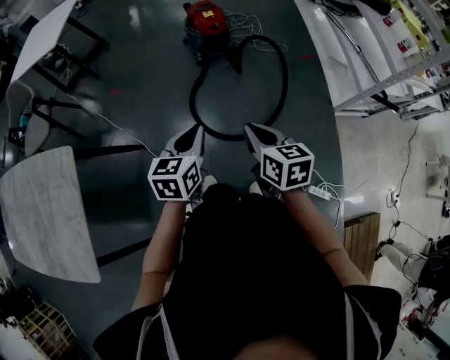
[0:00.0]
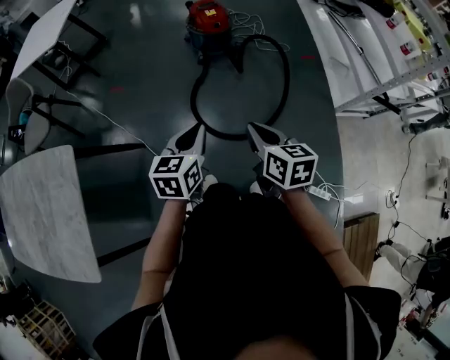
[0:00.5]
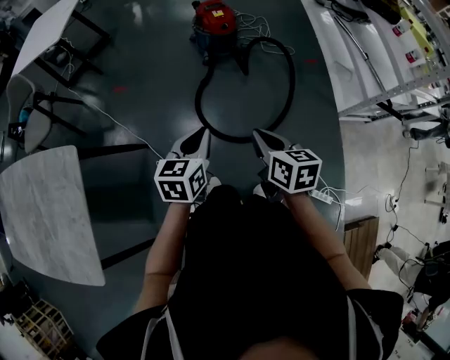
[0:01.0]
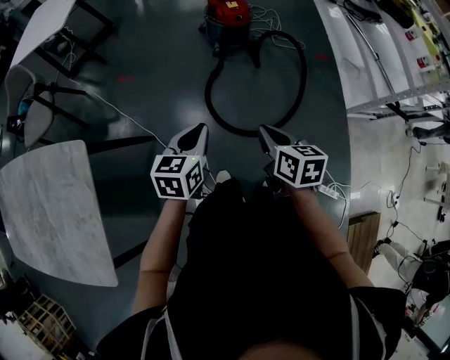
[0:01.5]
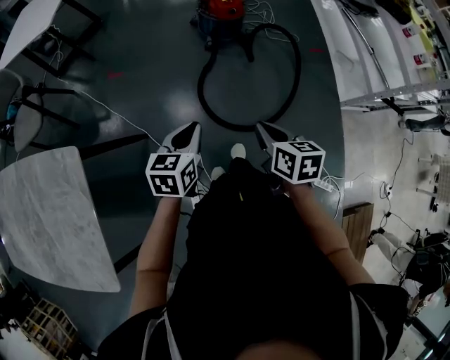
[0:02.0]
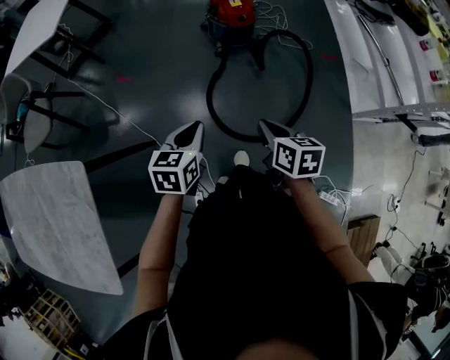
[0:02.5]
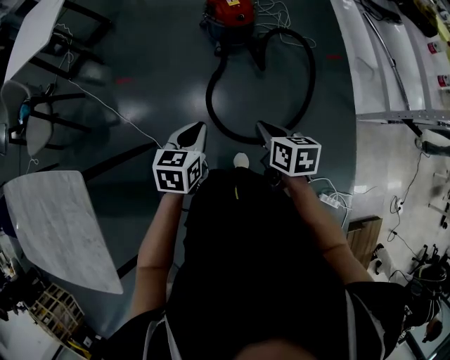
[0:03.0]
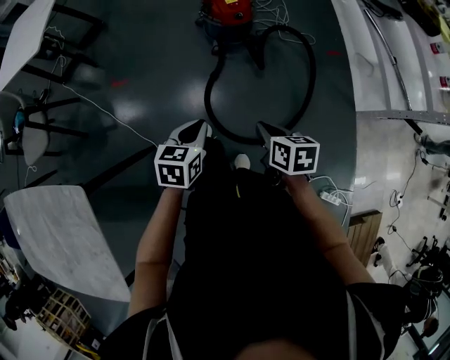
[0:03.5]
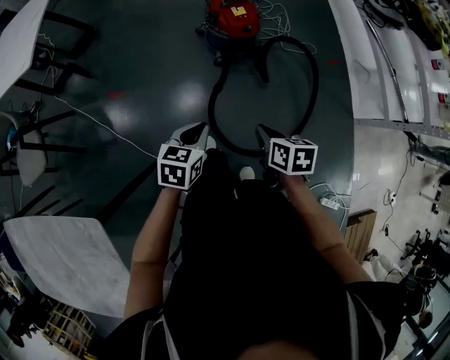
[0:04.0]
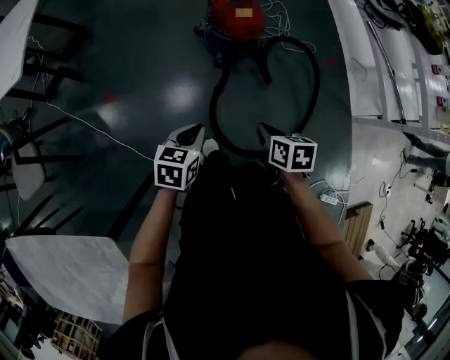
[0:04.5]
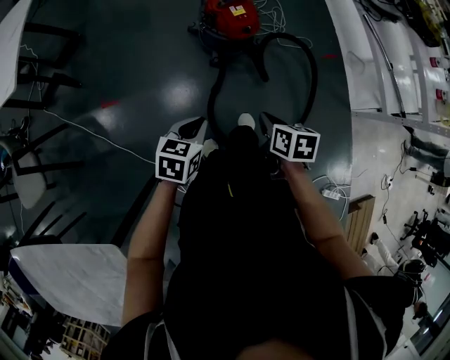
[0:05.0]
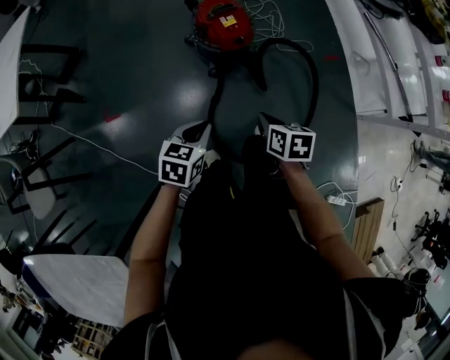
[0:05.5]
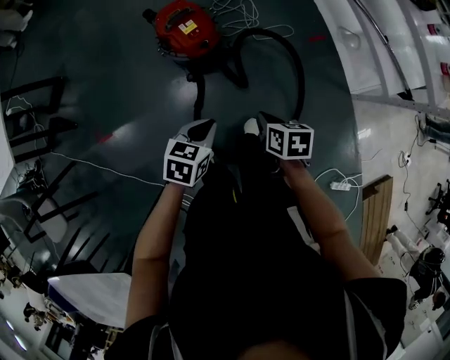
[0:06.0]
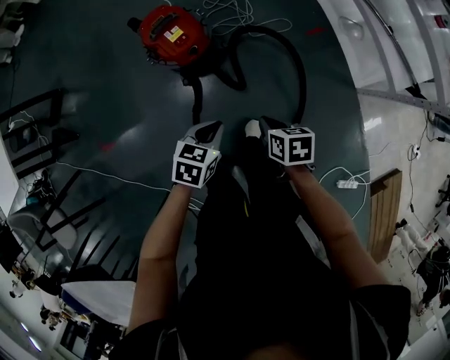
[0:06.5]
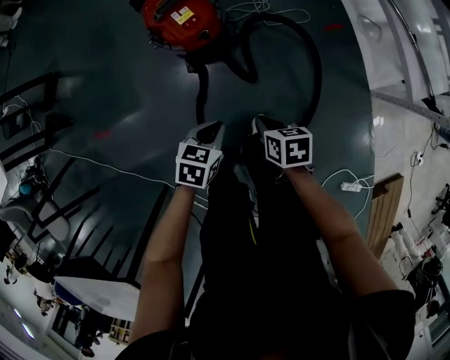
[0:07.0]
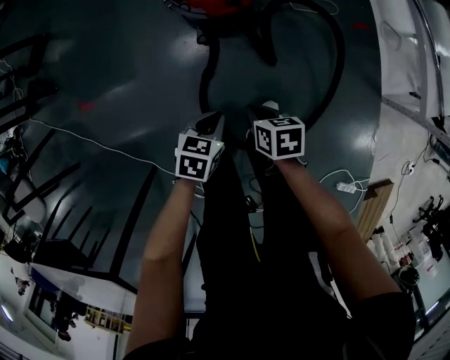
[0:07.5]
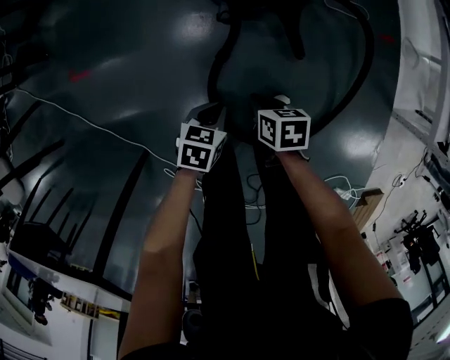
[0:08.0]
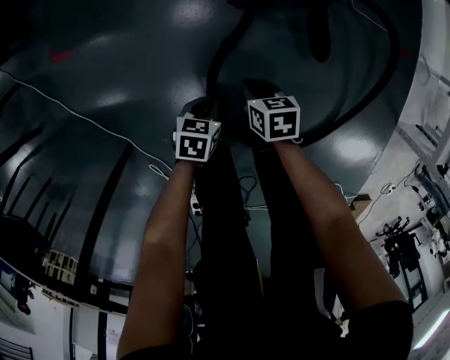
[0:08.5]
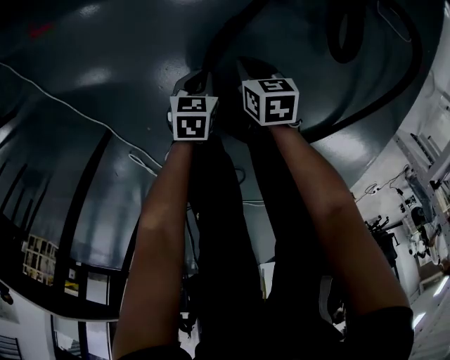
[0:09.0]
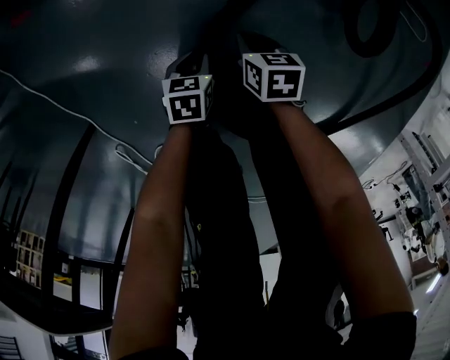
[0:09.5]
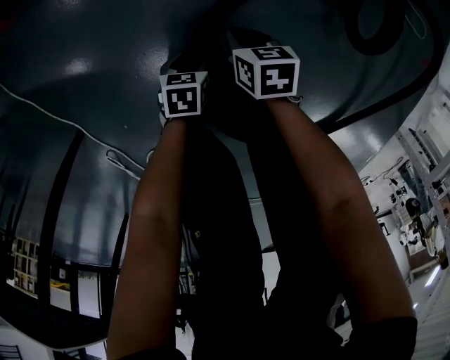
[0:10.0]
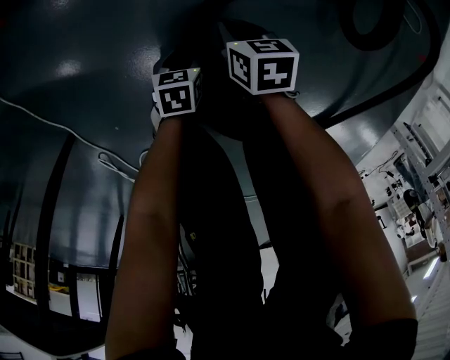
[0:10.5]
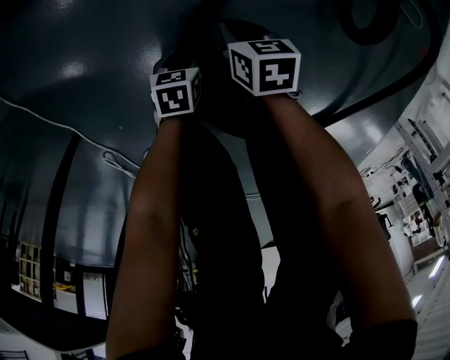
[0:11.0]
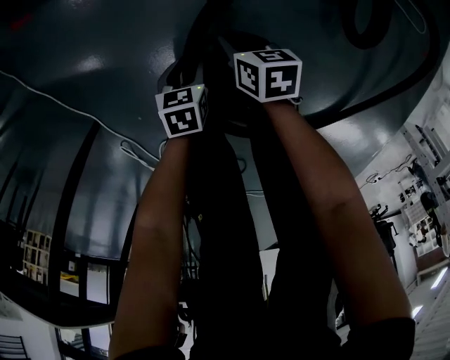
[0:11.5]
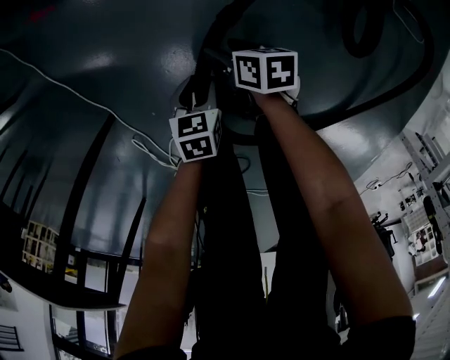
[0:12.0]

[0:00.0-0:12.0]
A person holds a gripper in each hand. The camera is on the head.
0:00.0 to 0:02.0: The grippers both shift to the left and forward by roughly 15 cm.
0:02.0 to 0:04.0: Both grippers move forward, about 30 cm.
0:04.0 to 0:06.0: The two grippers go some 25 cm forward and to the right. The left gripper swivels about 20 degrees.
0:06.0 to 0:08.0: The left gripper moves downward, about 35 cm, and rotates about 20 degrees, while the right gripper is displaced downward and to the left by about 35 cm, and swivels roughly 20 degrees.
0:08.0 to 0:10.0: Both grippers move downward, some 35 cm. The left gripper rotates some 30 degrees, and opens up, while the right gripper turns by roughly 20 degrees.
0:10.0 to 0:12.0: The left gripper moves upward, some 20 cm. Meanwhile the right gripper is displaced upward and to the left by roughly 10 cm, turns by approximately 20 degrees, and opens.

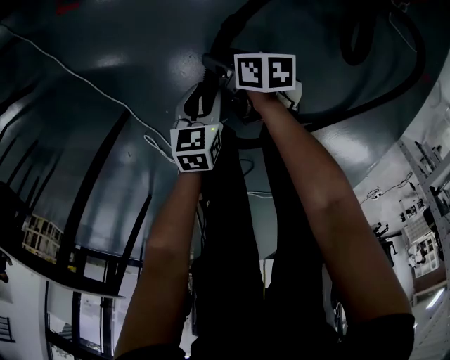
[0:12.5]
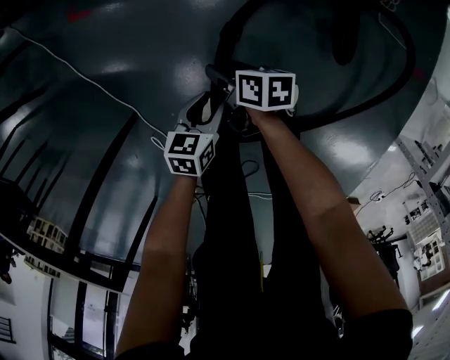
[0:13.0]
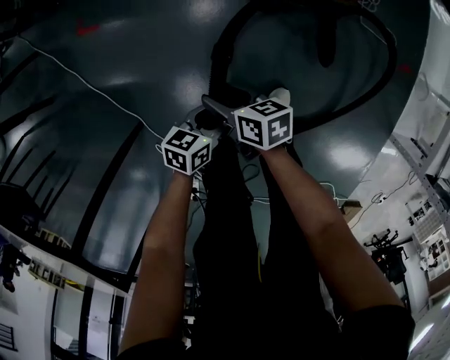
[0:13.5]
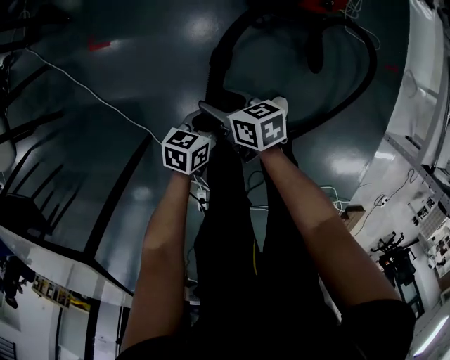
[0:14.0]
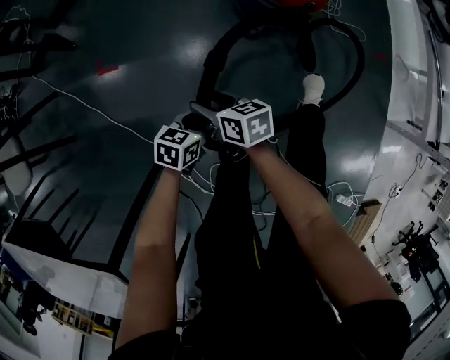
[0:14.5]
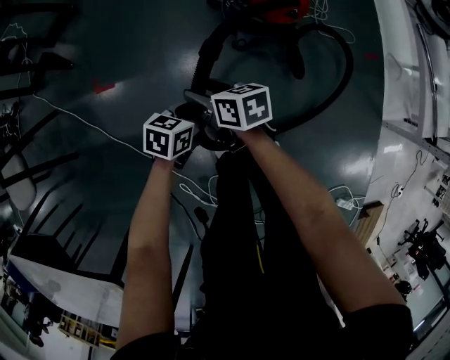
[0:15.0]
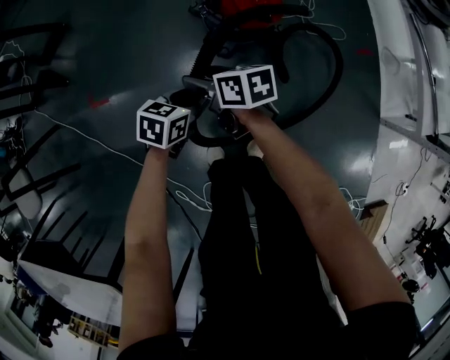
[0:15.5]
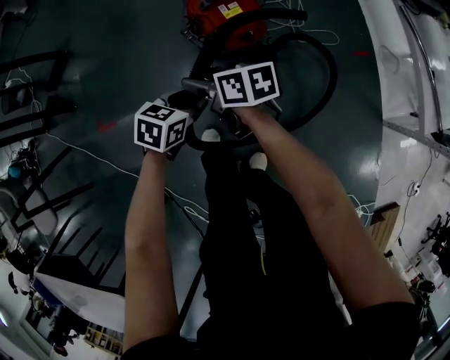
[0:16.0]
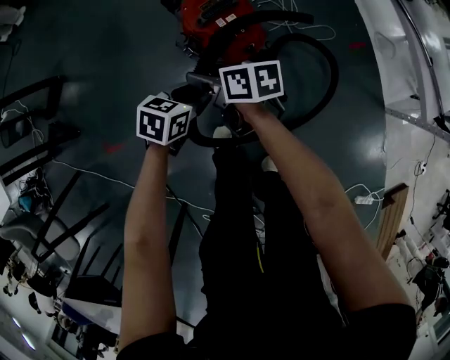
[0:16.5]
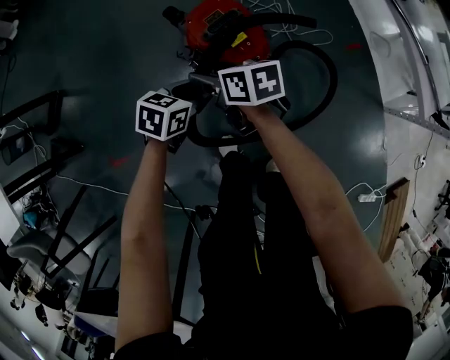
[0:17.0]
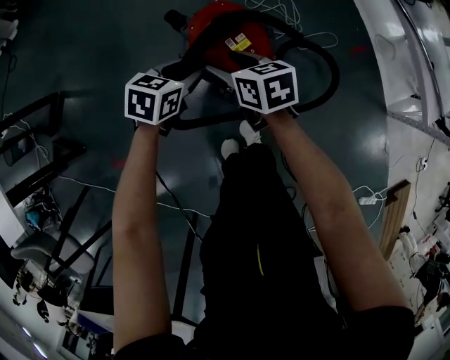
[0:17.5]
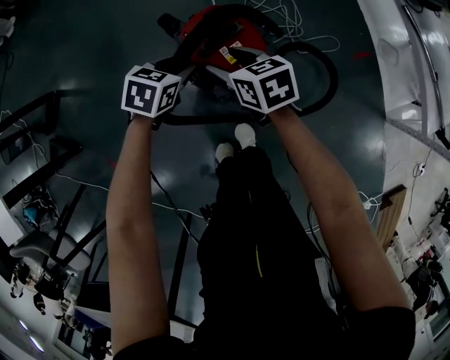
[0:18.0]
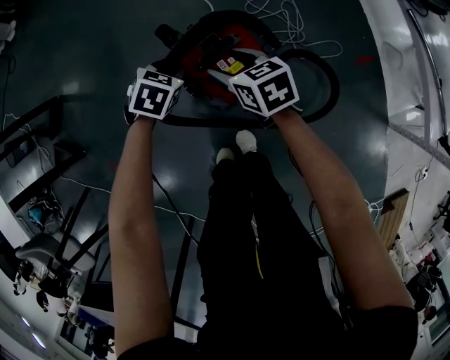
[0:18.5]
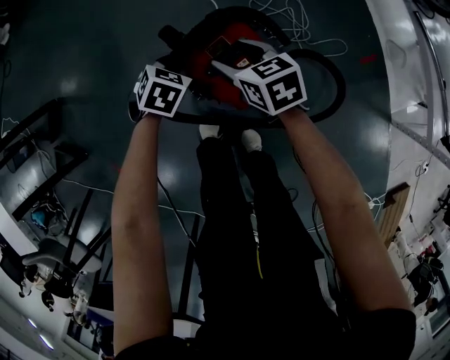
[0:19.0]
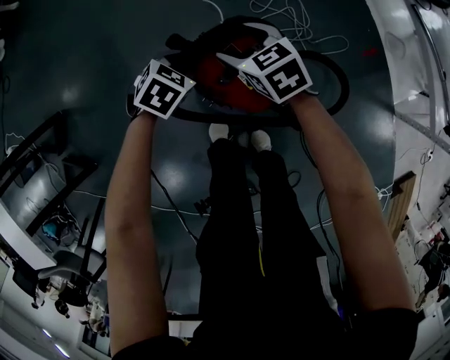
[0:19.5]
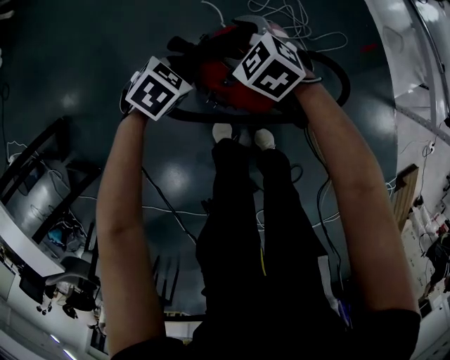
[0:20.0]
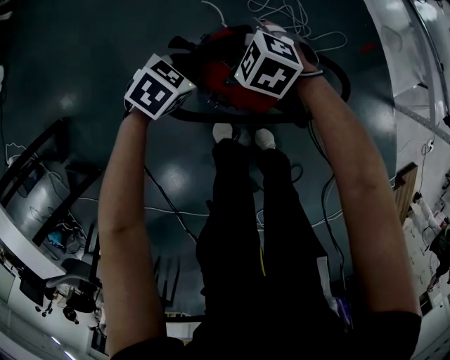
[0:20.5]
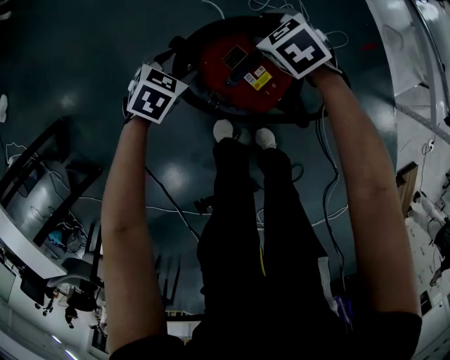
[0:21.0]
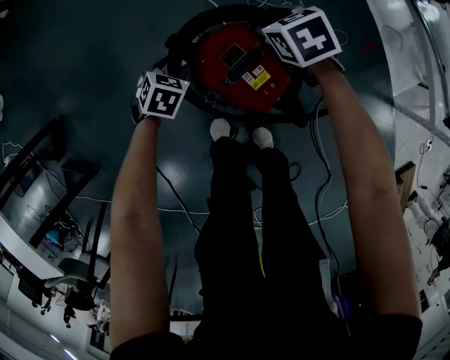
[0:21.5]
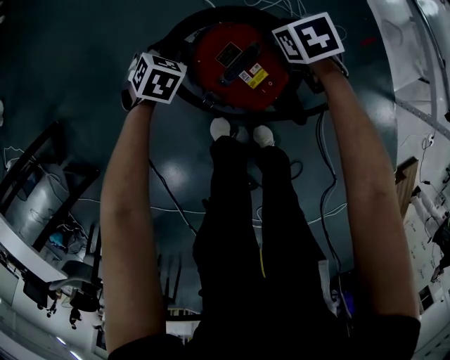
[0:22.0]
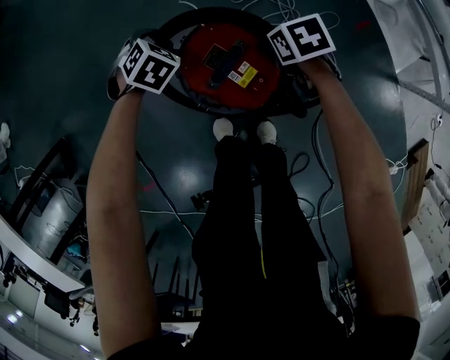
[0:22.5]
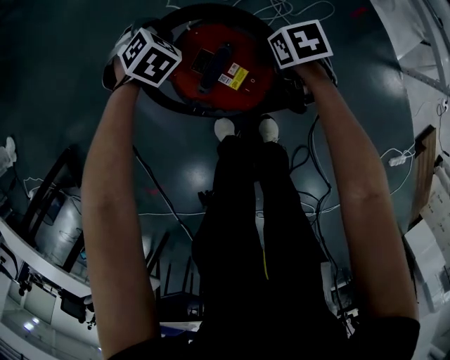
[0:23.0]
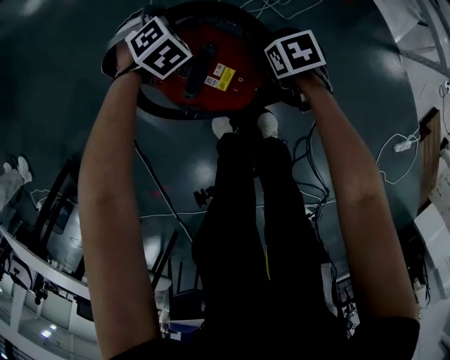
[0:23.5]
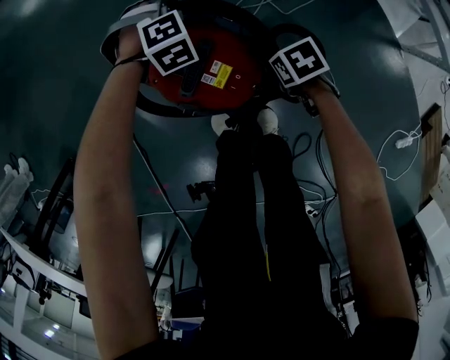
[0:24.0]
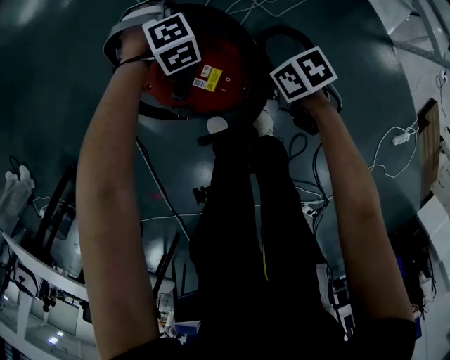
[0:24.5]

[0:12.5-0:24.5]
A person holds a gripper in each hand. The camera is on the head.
0:12.5 to 0:14.5: The two grippers go about 25 cm upward. The left gripper swivels some 40 degrees, while the right gripper turns by some 20 degrees.
0:14.5 to 0:16.5: Both grippers move forward and to the right, roughly 35 cm. The left gripper swivels about 20 degrees.
0:16.5 to 0:18.5: The grippers both shift forward by some 20 cm. The left gripper changes its angle by about 30 degrees. Meanwhile the right gripper changes its angle by some 30 degrees.
0:18.5 to 0:20.5: The left gripper rotates roughly 30 degrees. Meanwhile the right gripper moves some 10 cm, and twists some 40 degrees counterclockwise, seen from behind.
0:20.5 to 0:22.5: The right gripper changes place by approximately 15 cm, and twists roughly 60 degrees clockwise, seen from behind. Meanwhile the left gripper changes place by roughly 10 cm, turns by about 30 degrees, and opens, then closes once more.
0:22.5 to 0:24.5: The right gripper moves some 15 cm, and changes its angle by roughly 30 degrees. Meanwhile the left gripper shifts by about 20 cm, and rolls clockwise, seen from behind, by roughly 50 degrees.

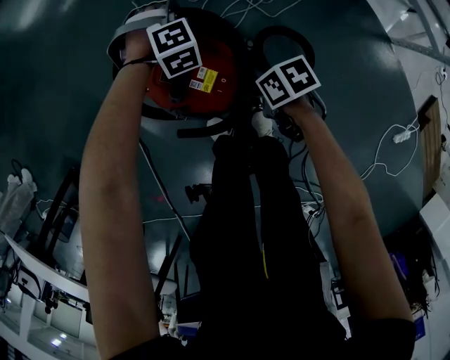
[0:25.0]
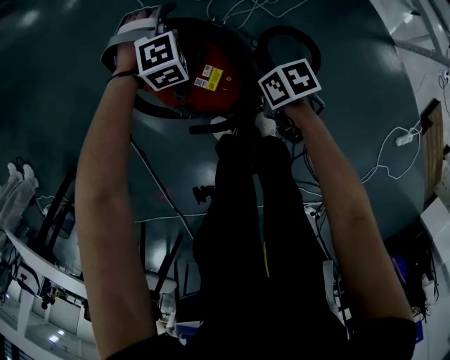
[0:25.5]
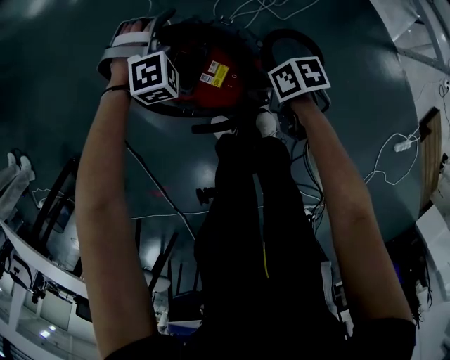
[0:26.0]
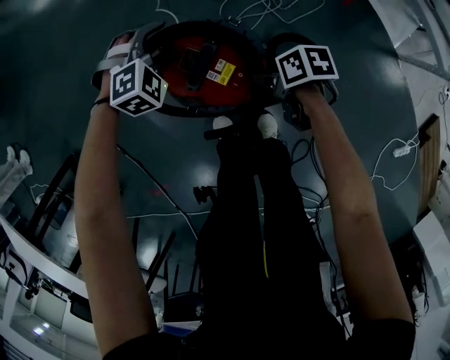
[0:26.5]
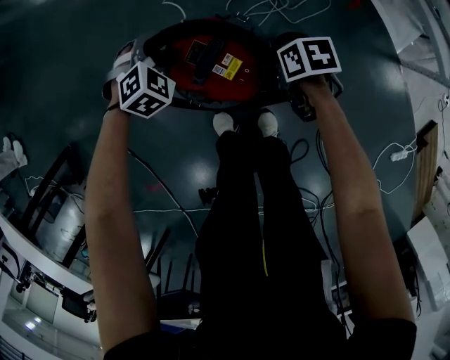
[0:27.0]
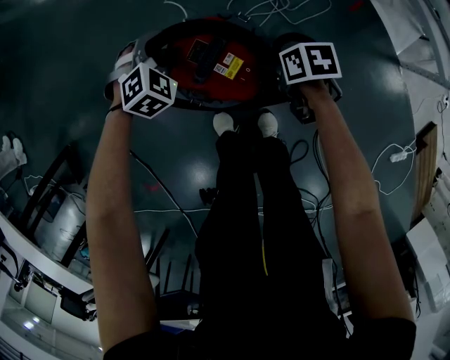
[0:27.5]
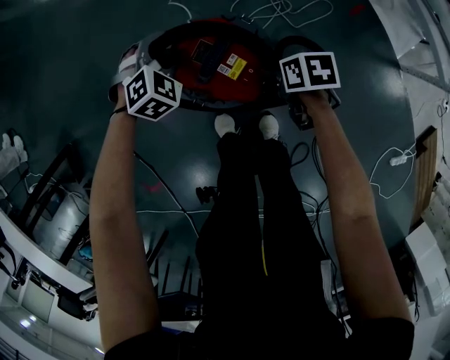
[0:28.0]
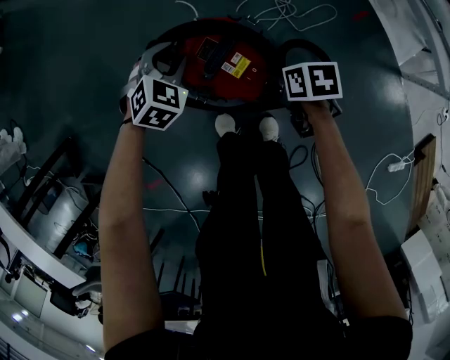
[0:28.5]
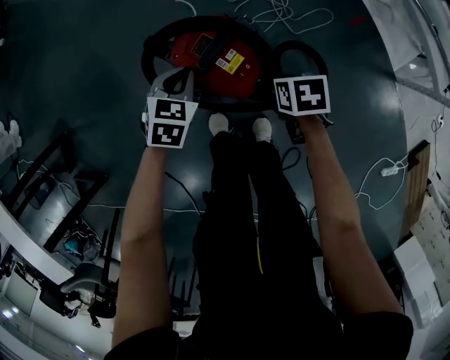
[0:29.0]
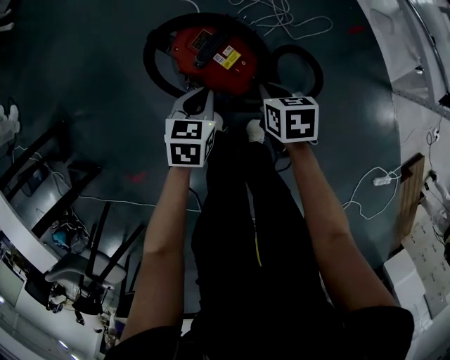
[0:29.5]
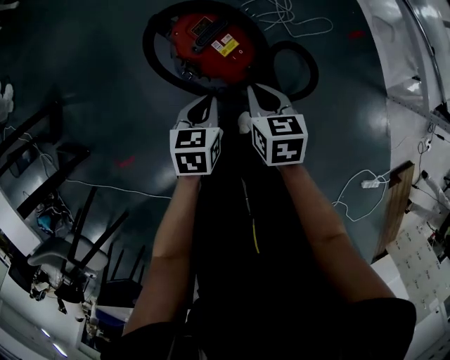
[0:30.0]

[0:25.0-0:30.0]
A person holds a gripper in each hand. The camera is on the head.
0:25.0 to 0:27.5: The left gripper heads to the left, covering approximately 15 cm, and rotates some 30 degrees. Meanwhile the right gripper changes place by roughly 5 cm.
0:27.5 to 0:30.0: The left gripper heads backward, covering roughly 25 cm, twists some 70 degrees counterclockwise, seen from behind, and closes its fingers; the right gripper shifts about 15 cm upward, backward and to the left, changes its angle by about 40 degrees, and closes up.
